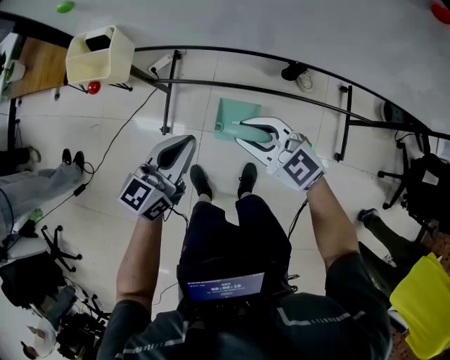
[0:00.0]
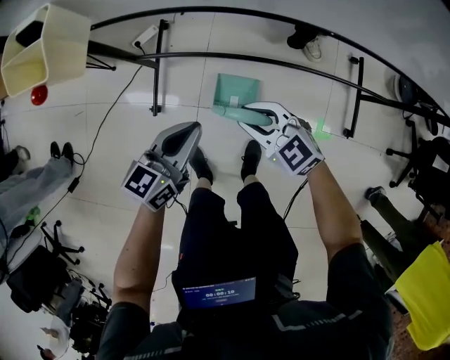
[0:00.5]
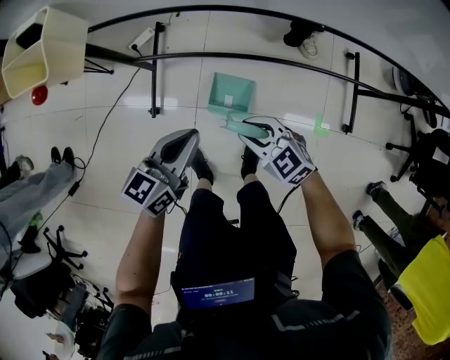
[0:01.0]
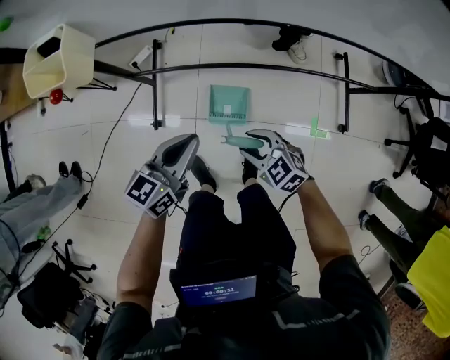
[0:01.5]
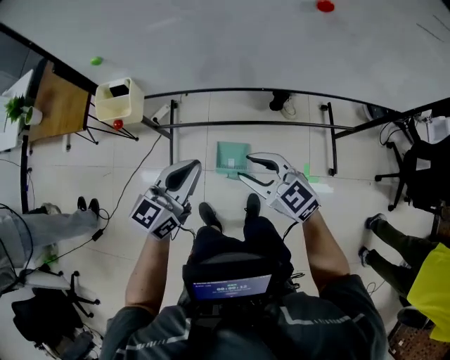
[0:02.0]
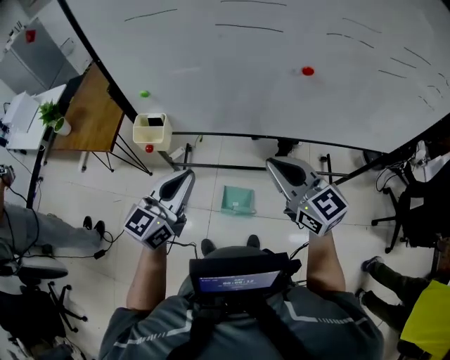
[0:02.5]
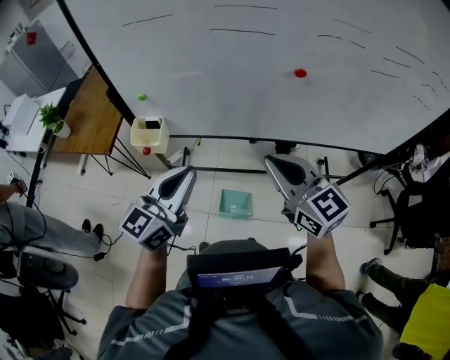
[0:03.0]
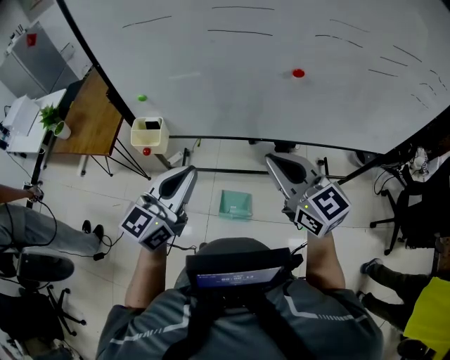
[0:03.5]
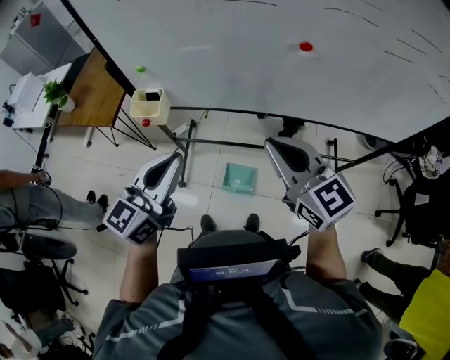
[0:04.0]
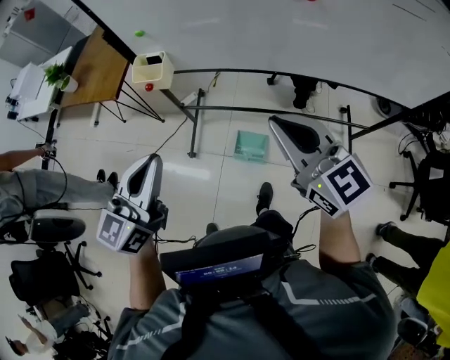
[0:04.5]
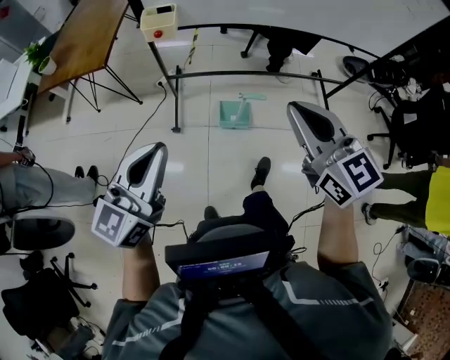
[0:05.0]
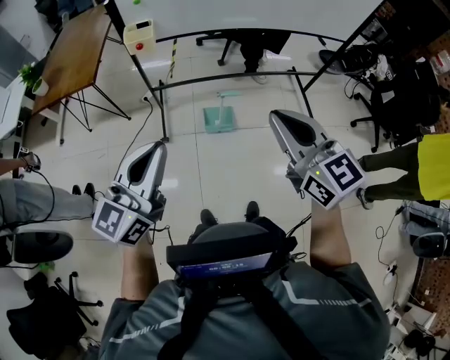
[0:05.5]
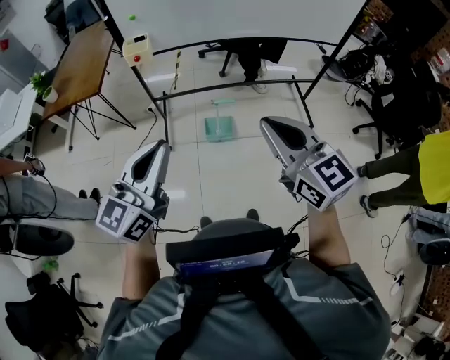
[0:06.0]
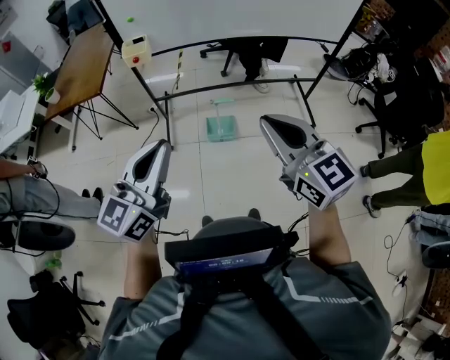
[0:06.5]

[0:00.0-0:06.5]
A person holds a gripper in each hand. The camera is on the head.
0:00.0 to 0:02.0: The right gripper goes roughly 10 cm backward, and moves roughly 25 cm downward and comes back; the left gripper shifts roughly 15 cm upward.
0:02.0 to 0:04.5: The left gripper travels upward and backward by approximately 25 cm, and changes its angle by about 20 degrees. Meanwhile the right gripper travels upward by some 25 cm, swivels about 20 degrees, and closes up.
0:04.5 to 0:06.5: Both grippers travel together backward, about 40 cm.

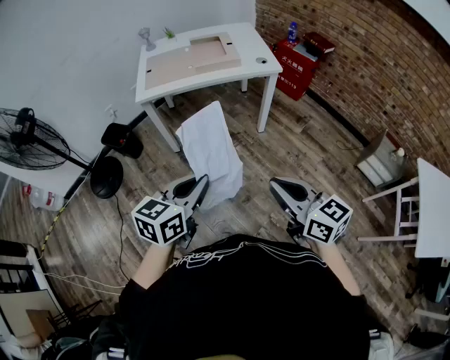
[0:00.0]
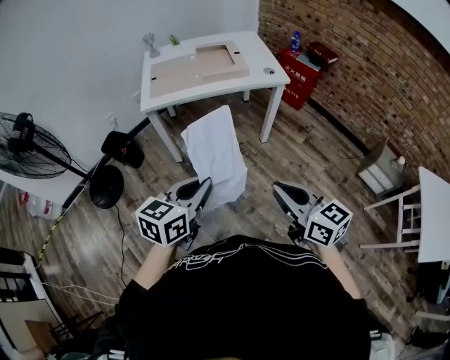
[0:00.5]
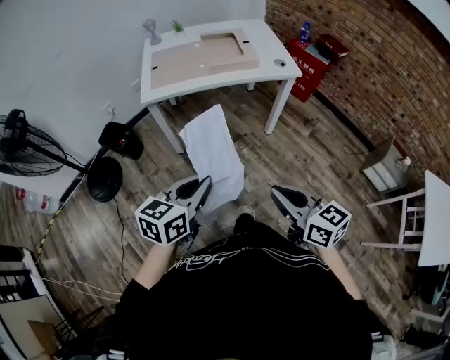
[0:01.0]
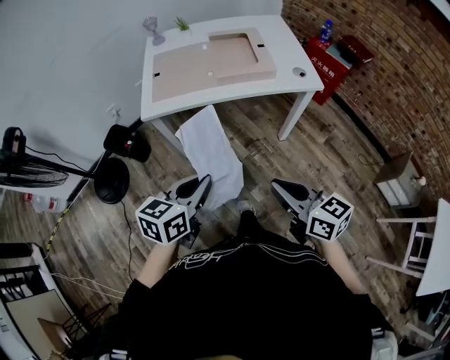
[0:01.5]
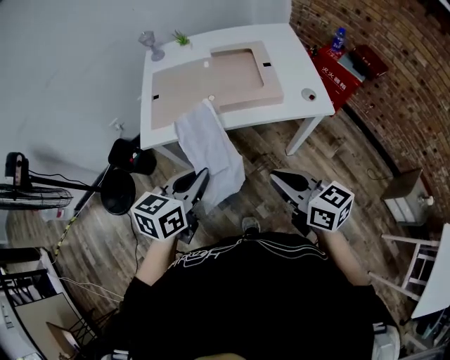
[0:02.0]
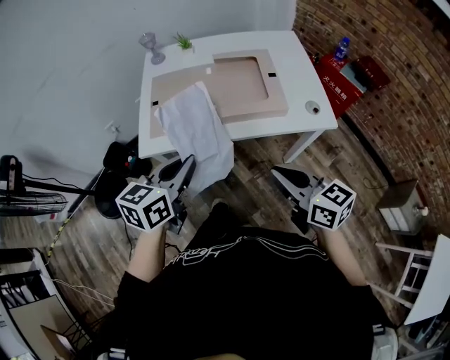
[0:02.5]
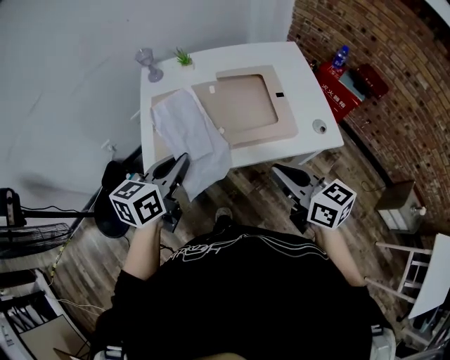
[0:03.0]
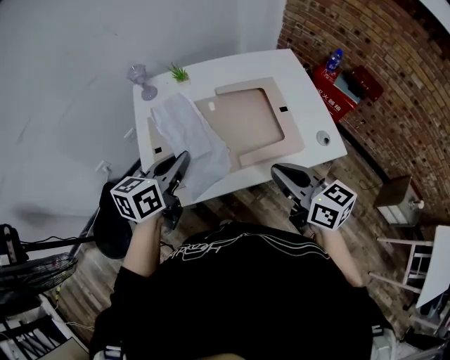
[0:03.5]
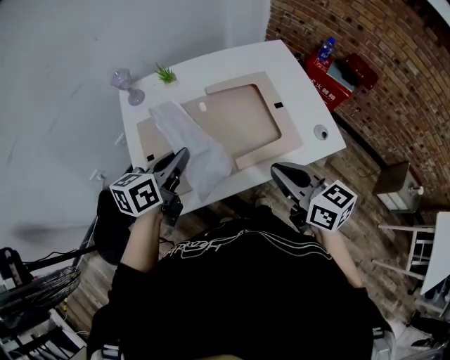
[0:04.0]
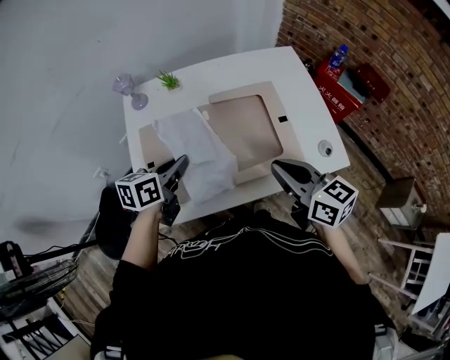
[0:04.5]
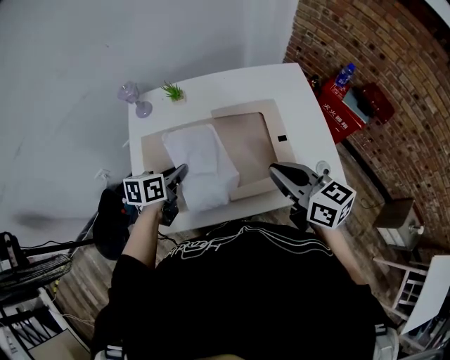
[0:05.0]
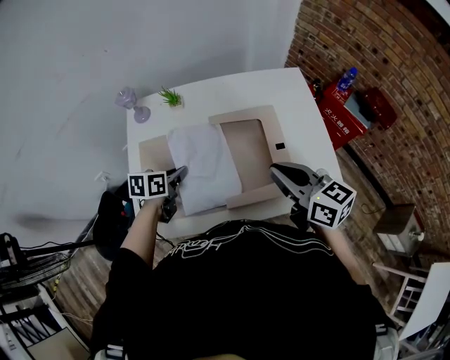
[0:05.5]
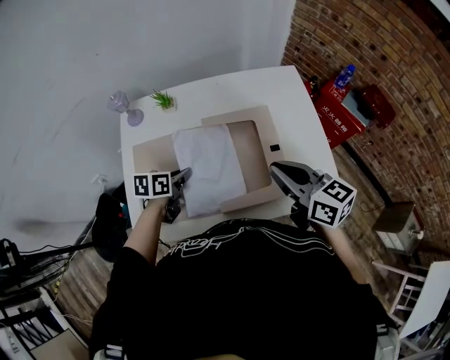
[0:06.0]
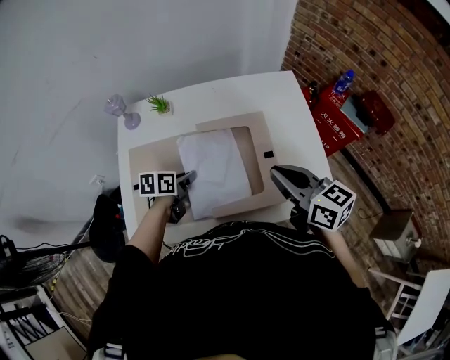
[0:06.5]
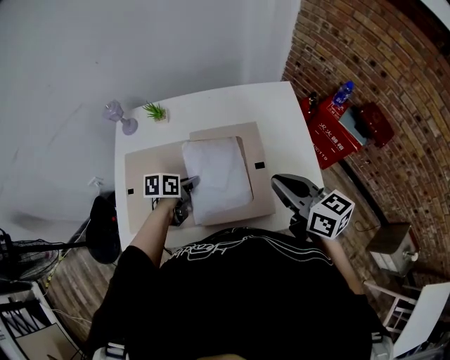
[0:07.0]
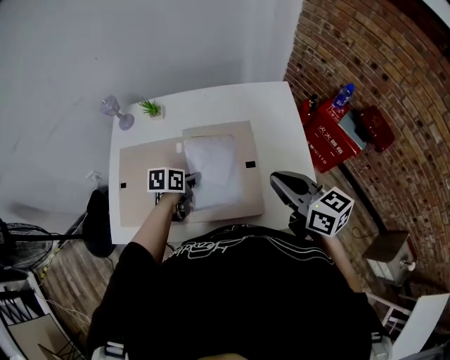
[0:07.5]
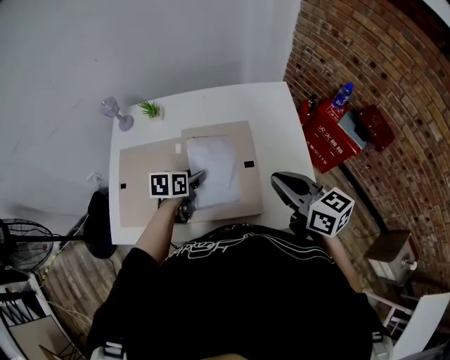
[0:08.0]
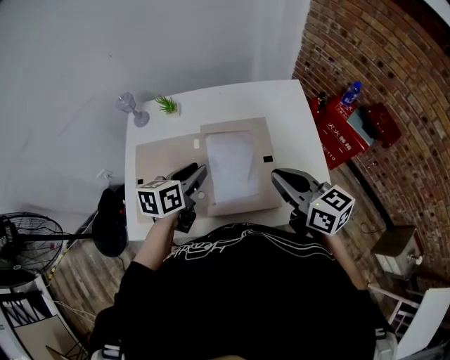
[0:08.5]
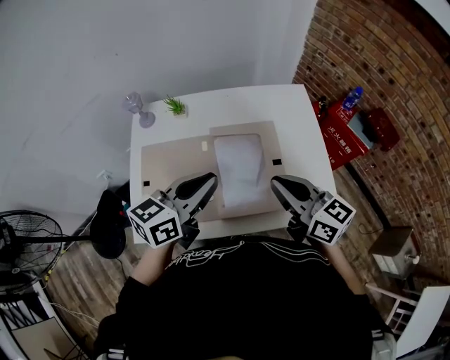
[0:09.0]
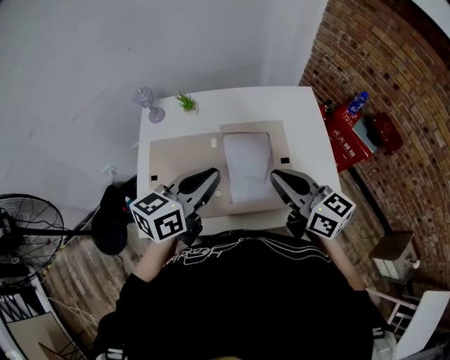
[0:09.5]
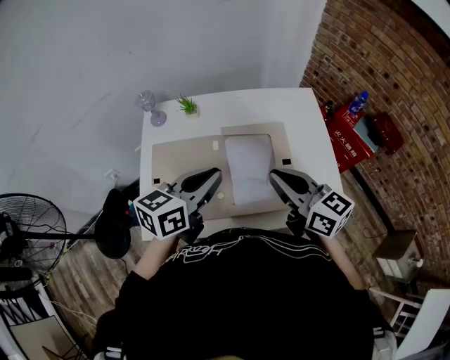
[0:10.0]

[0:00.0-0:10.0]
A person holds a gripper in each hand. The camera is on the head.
0:00.0 to 0:02.0: Both grippers move forward, approximately 35 cm.
0:02.0 to 0:04.0: The grippers both shift forward by some 25 cm.
0:04.0 to 0:06.0: The left gripper moves downward and forward, approximately 15 cm, and swivels approximately 30 degrees; the right gripper goes about 15 cm forward and to the right.
0:06.0 to 0:08.0: Both grippers move to the right, roughly 10 cm. The left gripper opens.
0:08.0 to 0:10.0: The right gripper shifts roughly 15 cm to the left; the left gripper goes roughly 20 cm upward, angles its fingers upward, by about 30 degrees, and closes its fingers.

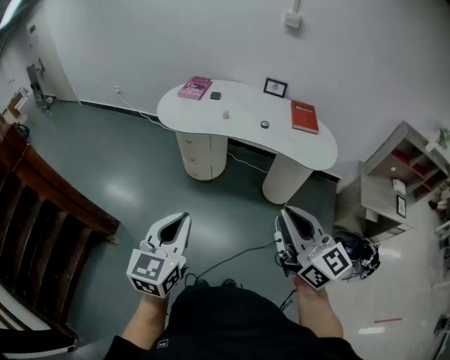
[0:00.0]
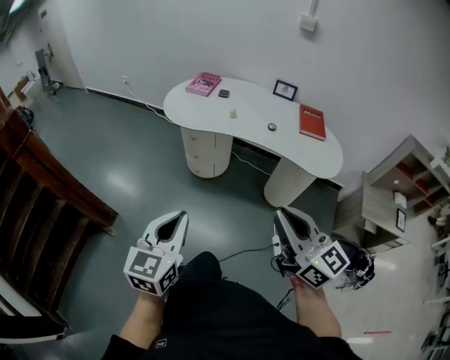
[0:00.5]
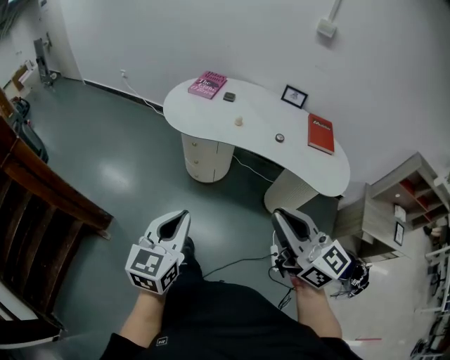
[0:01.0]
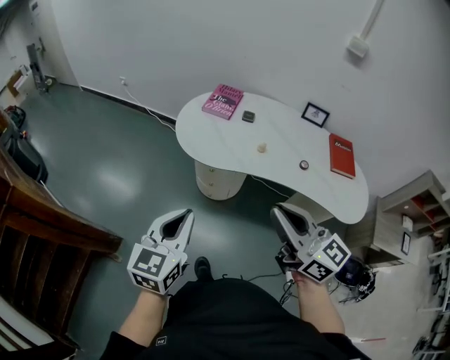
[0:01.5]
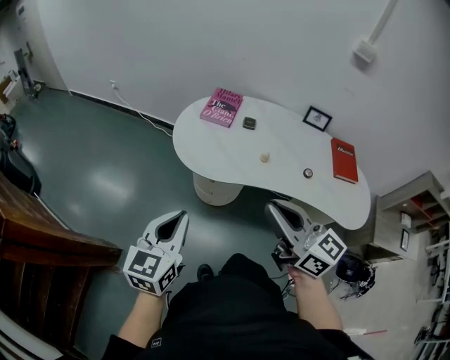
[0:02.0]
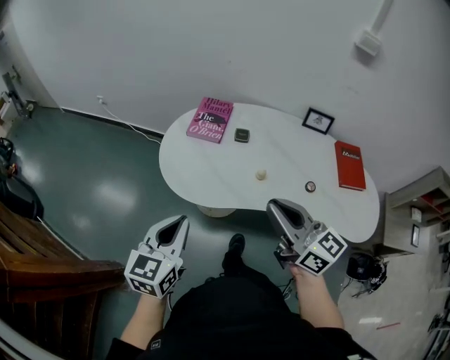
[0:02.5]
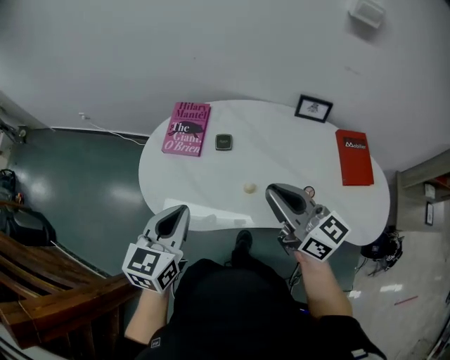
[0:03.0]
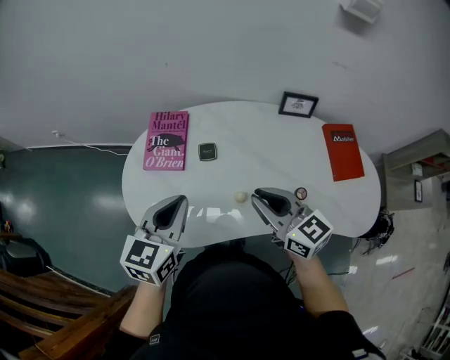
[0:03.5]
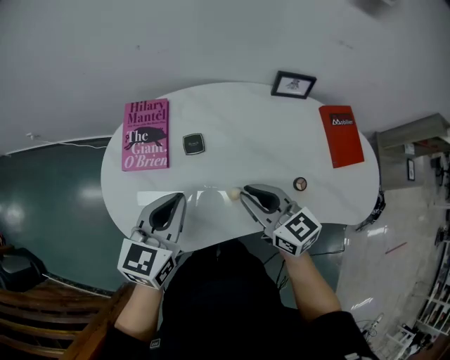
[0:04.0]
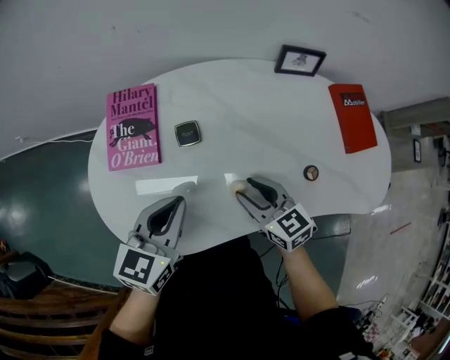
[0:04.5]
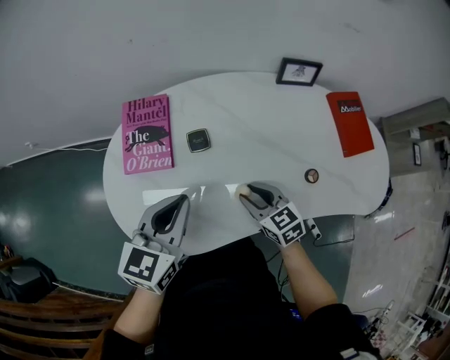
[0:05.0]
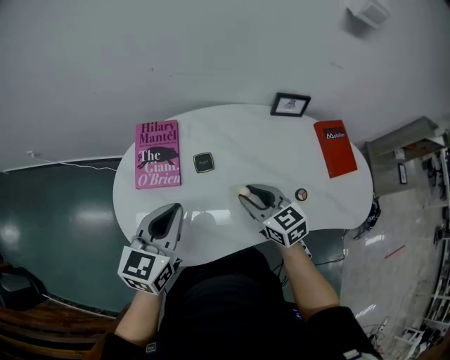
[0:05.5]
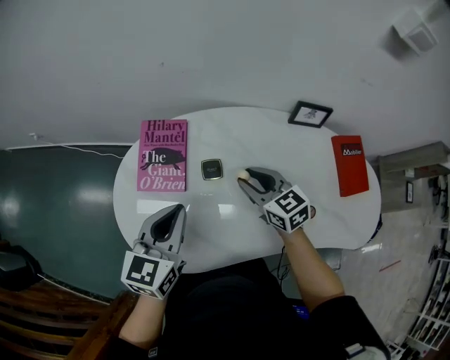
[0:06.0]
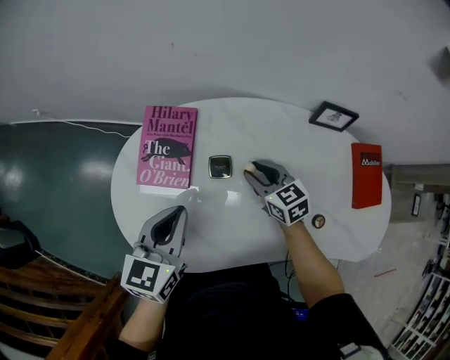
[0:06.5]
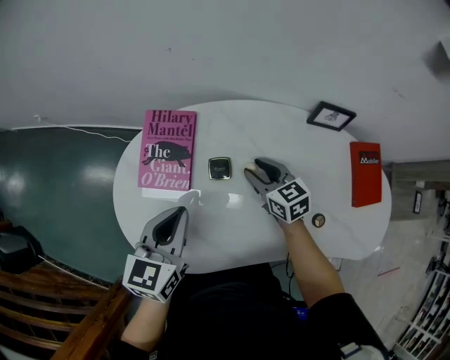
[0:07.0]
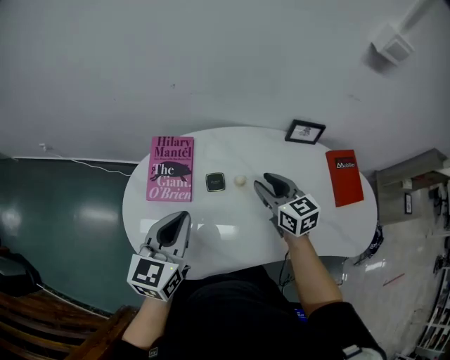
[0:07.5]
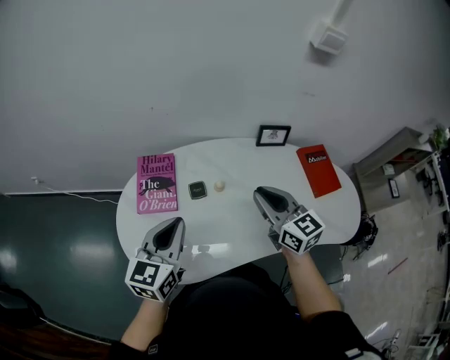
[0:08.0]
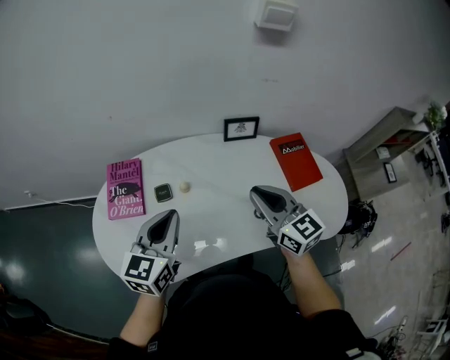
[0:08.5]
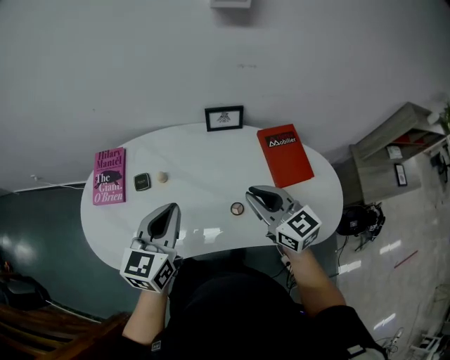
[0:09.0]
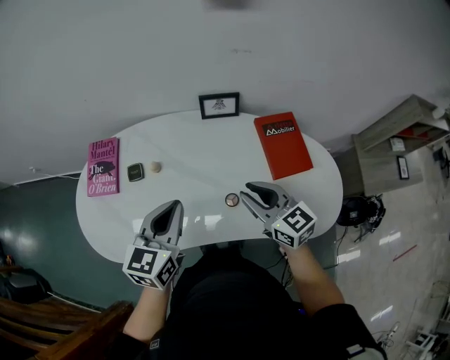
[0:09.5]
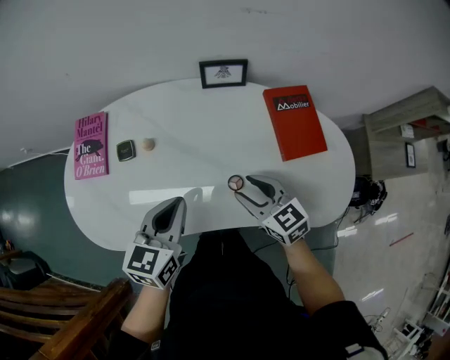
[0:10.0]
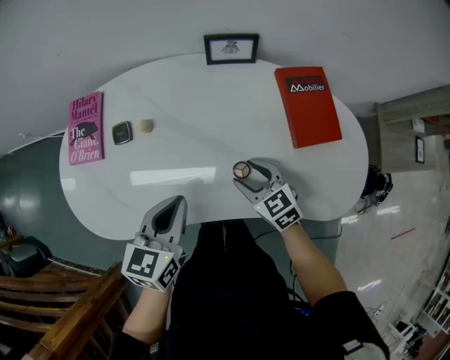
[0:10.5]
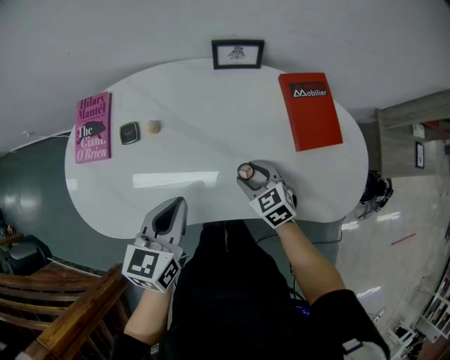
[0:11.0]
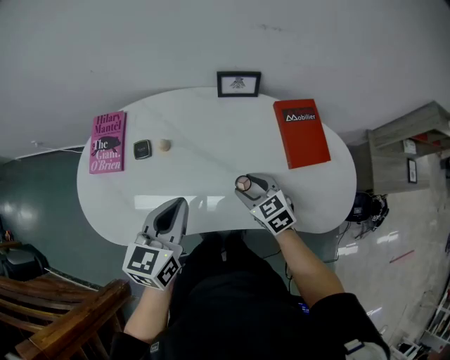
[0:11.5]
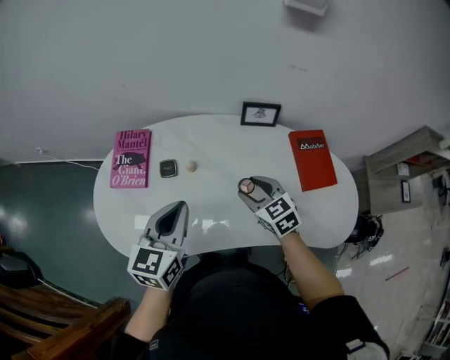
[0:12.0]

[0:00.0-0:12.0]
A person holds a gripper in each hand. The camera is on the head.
0:00.0 to 0:02.0: Both grippers are carried forward, roughly 40 cm.
0:02.0 to 0:04.0: The left gripper moves forward and to the right, about 40 cm, and turns by approximately 20 degrees. Meanwhile the right gripper travels forward and downward by some 40 cm, and rotates roughly 30 degrees.
0:04.0 to 0:06.0: The left gripper moves forward, some 5 cm, while the right gripper heads forward, covering approximately 15 cm, and opens its fingers.
0:06.0 to 0:08.0: The right gripper shifts about 15 cm upward and backward, and rotates about 20 degrees; the left gripper travels upward by some 5 cm.
0:08.0 to 0:10.0: The right gripper moves to the right and downward, about 25 cm, swivels about 20 degrees, and opens its fingers. The left gripper travels to the right by roughly 30 cm.
0:10.0 to 0:12.0: The right gripper travels to the left and forward by about 10 cm, and moves roughly 10 cm downward and comes back, while the left gripper is displaced to the left and upward by roughly 15 cm.
